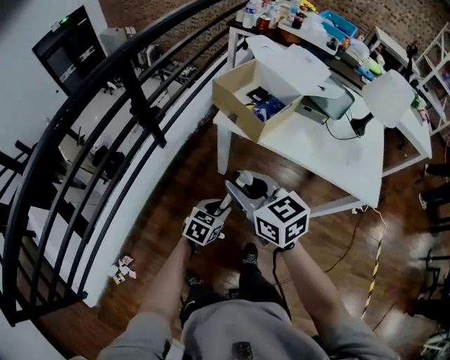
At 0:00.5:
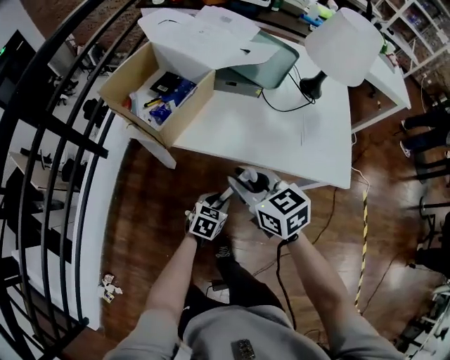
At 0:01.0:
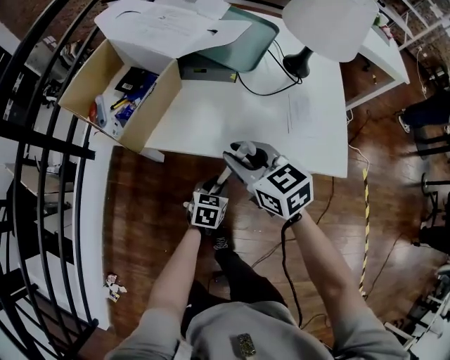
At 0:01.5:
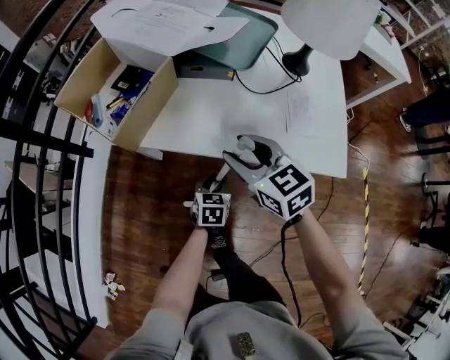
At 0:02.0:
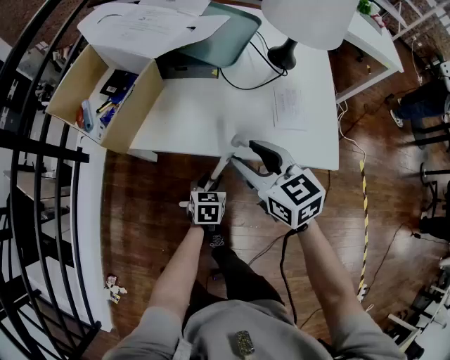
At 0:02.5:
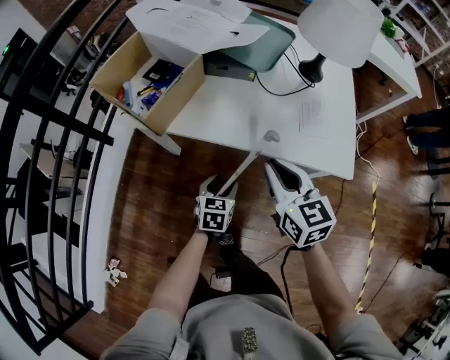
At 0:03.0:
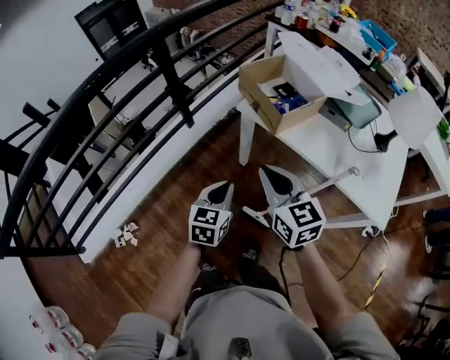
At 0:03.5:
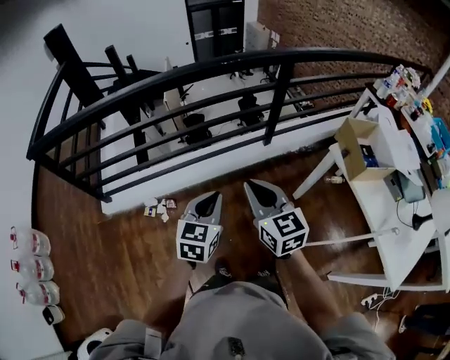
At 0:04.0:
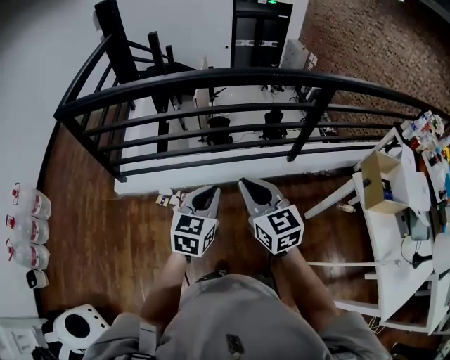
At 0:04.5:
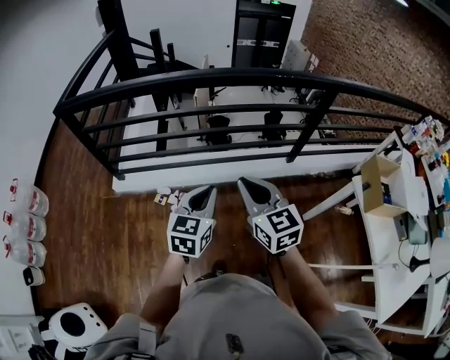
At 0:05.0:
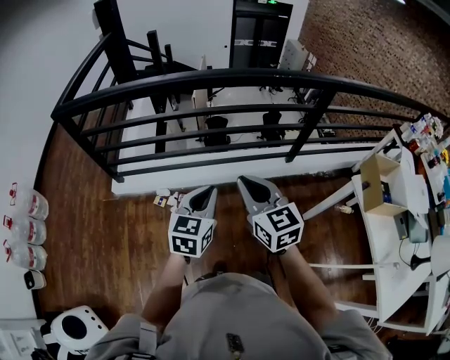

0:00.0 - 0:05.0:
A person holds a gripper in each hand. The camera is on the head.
0:00.0 - 0:02.5: Both grippers travel together to the right, roughly 30 cm. The left gripper opens up. The right gripper changes its angle by roughly 30 degrees, and opens, then closes again.
0:02.5 - 0:05.0: The pair of grippers is taken some 70 cm. The left gripper swivels about 70 degrees, and closes its fingers; the right gripper turns by approximately 70 degrees.

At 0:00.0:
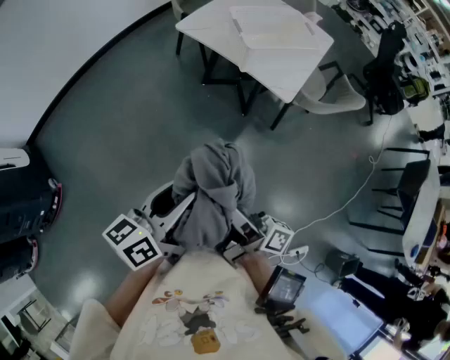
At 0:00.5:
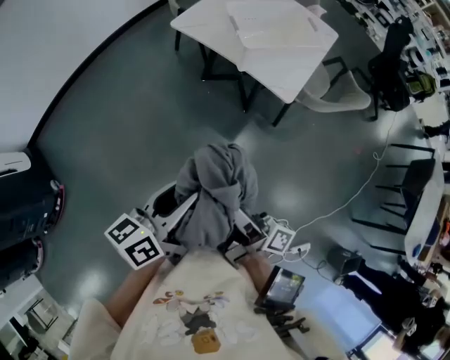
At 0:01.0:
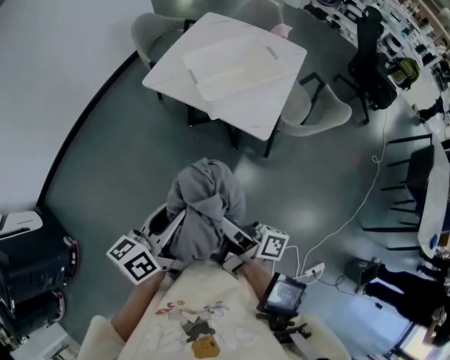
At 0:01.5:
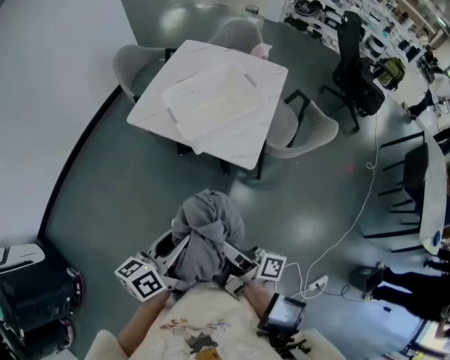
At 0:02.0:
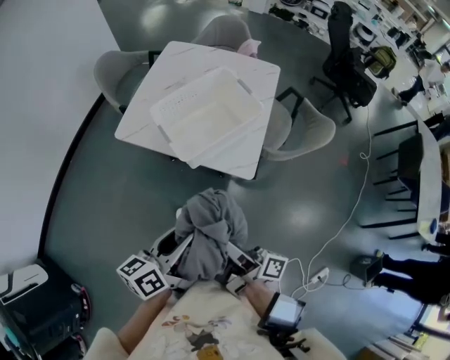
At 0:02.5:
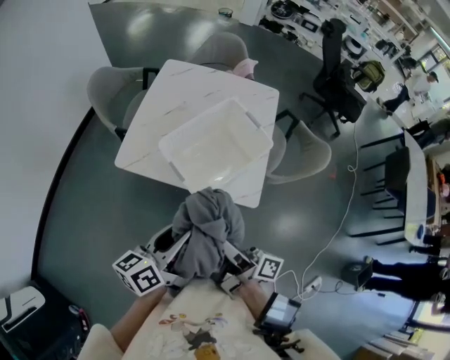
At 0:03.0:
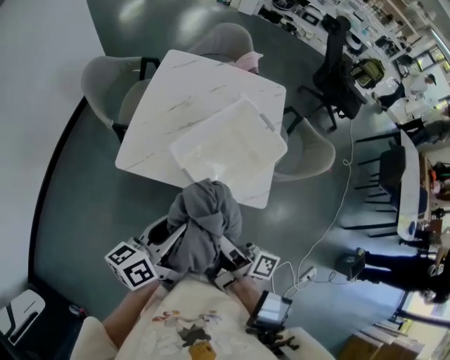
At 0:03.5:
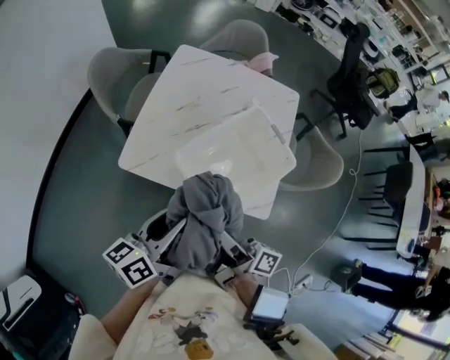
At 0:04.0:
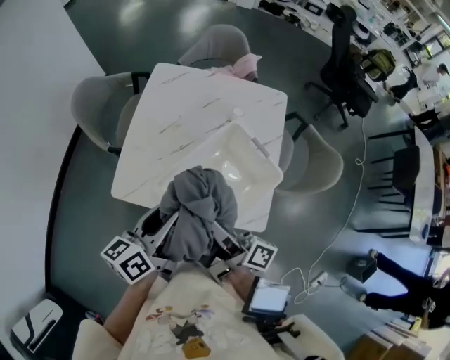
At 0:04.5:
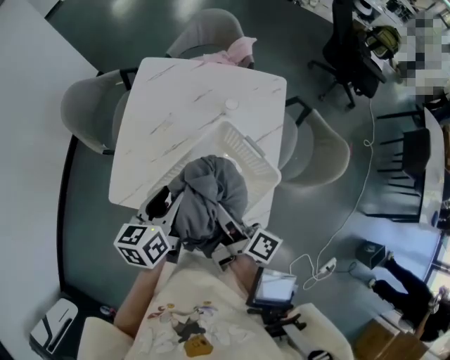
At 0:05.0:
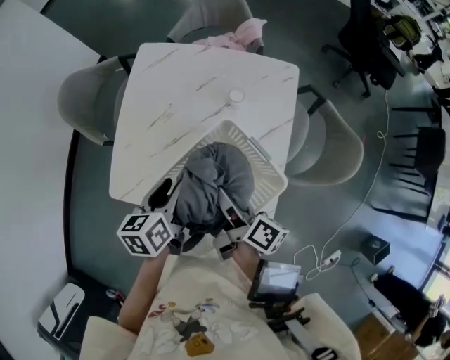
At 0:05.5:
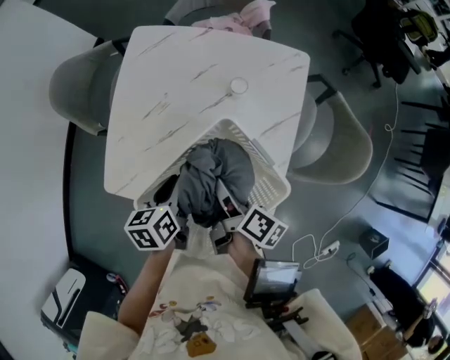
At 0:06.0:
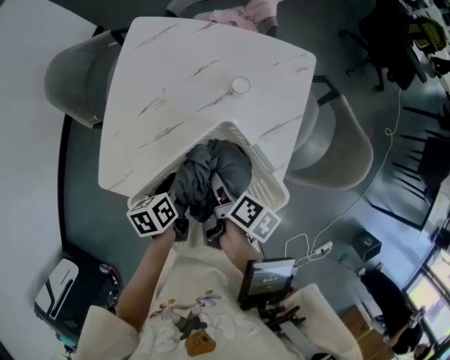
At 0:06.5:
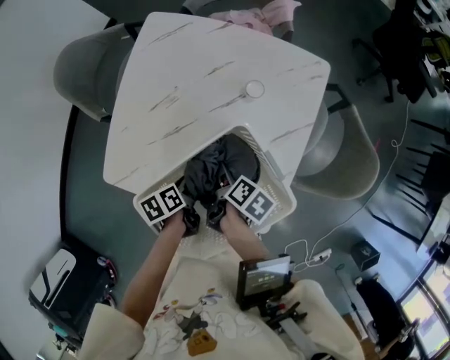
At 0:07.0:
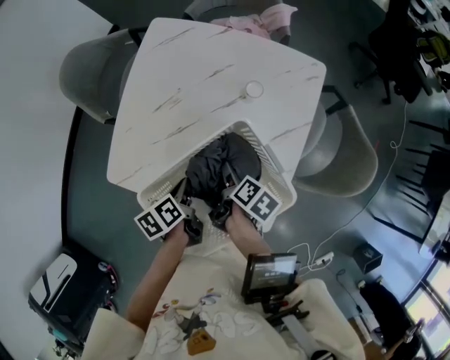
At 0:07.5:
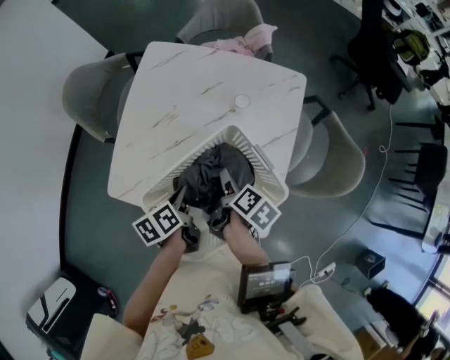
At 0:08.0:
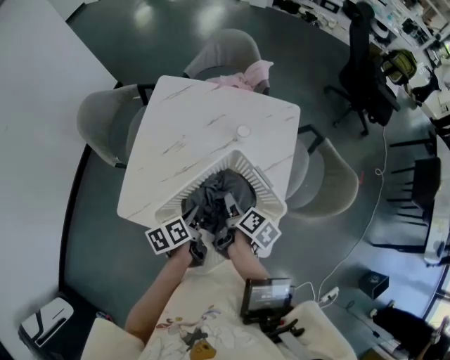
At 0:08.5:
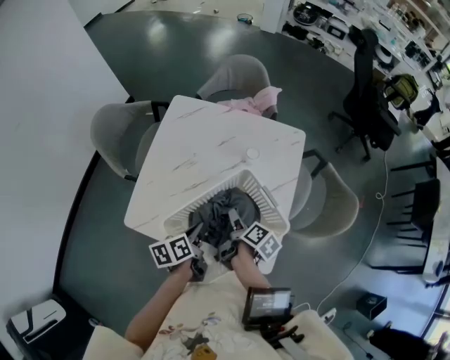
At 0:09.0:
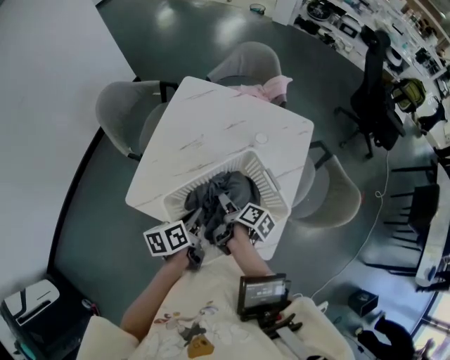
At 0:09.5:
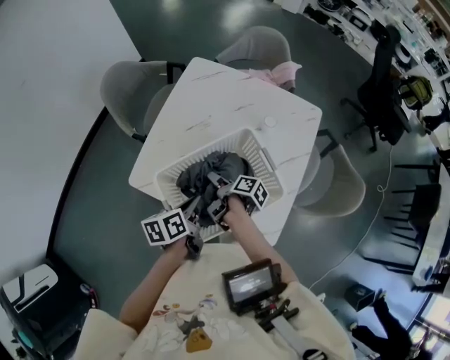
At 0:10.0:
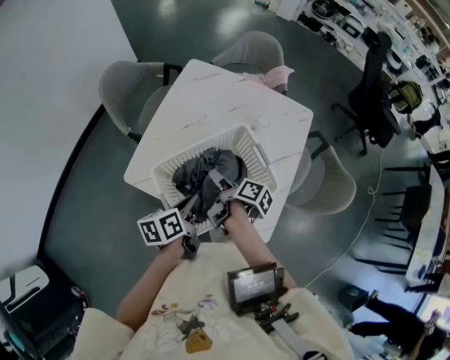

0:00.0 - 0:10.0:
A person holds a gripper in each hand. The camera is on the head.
0:00.0 - 0:02.0: The left gripper ends up roughly 30 cm from where it was.
0:02.0 - 0:04.0: The left gripper shifts by approximately 35 cm.
0:04.0 - 0:06.0: The left gripper shifts approximately 25 cm downward, angles its fingers downward, by about 40 degrees, and closes up.
0:06.0 - 0:08.0: The left gripper goes some 5 cm upward.
0:08.0 - 0:10.0: The left gripper shifts by approximately 10 cm.

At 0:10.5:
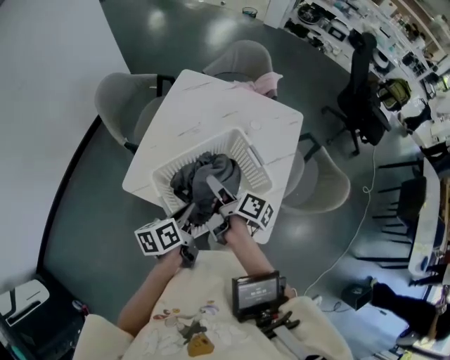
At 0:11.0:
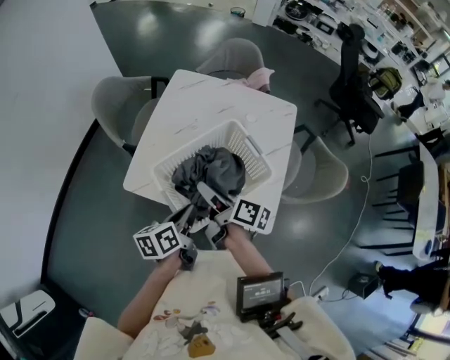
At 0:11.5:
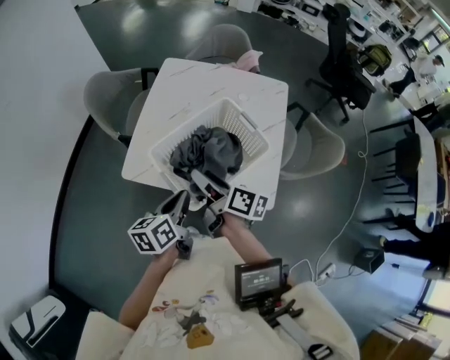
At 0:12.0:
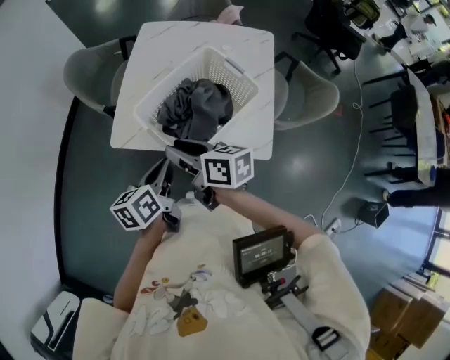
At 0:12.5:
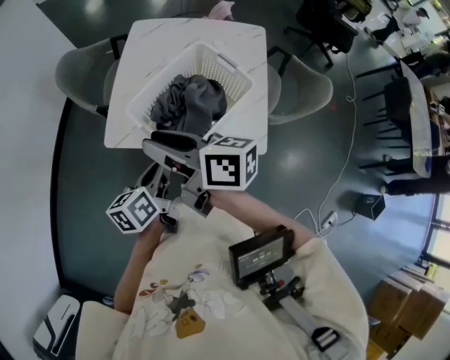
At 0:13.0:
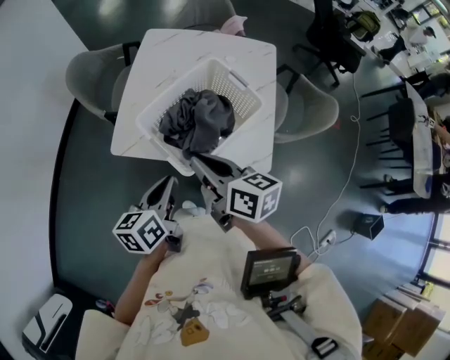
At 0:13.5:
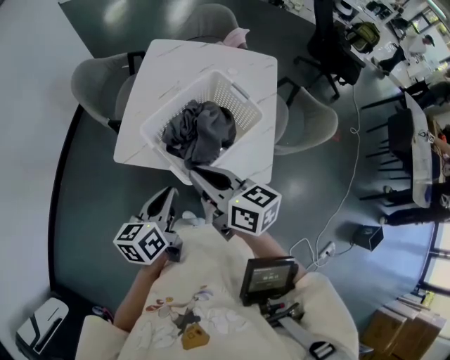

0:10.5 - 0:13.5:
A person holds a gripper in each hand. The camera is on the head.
0:10.5 - 0:12.0: The left gripper changes place by roughly 10 cm.

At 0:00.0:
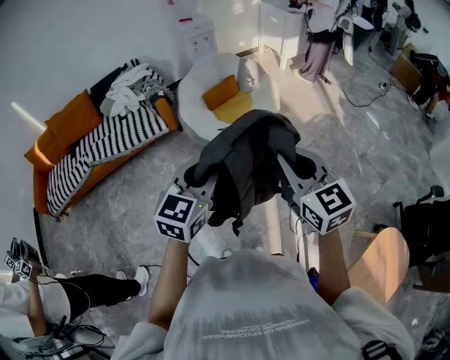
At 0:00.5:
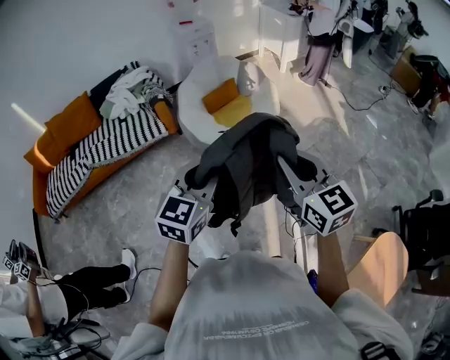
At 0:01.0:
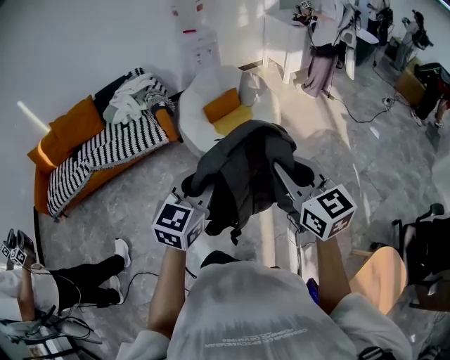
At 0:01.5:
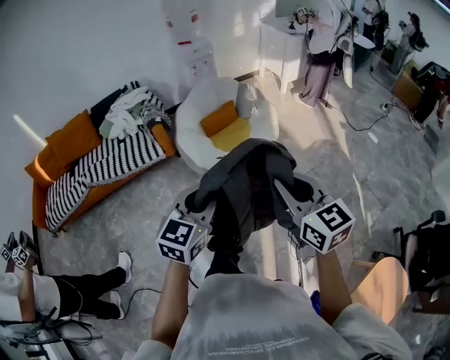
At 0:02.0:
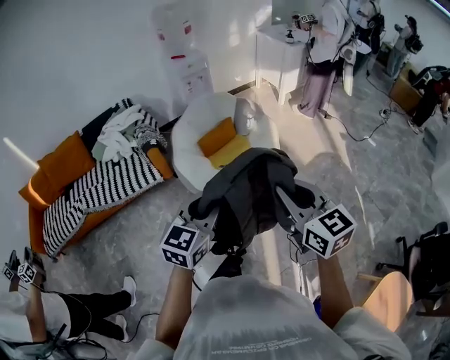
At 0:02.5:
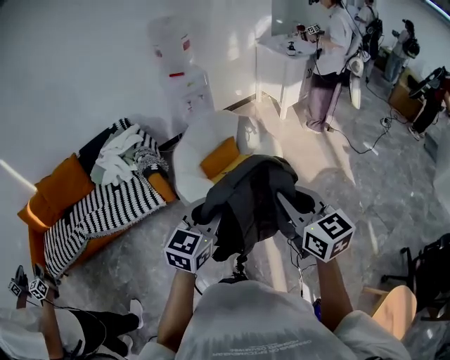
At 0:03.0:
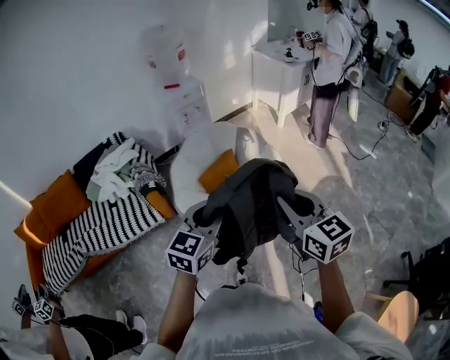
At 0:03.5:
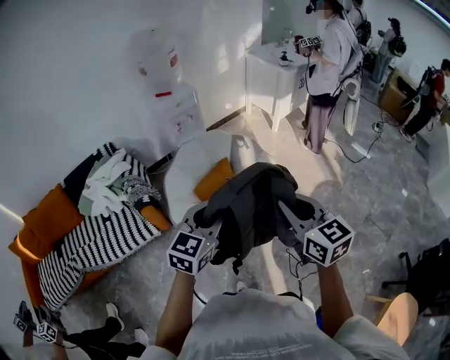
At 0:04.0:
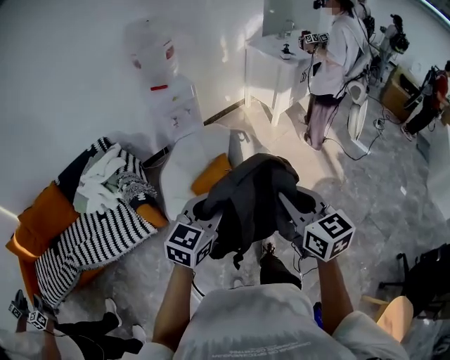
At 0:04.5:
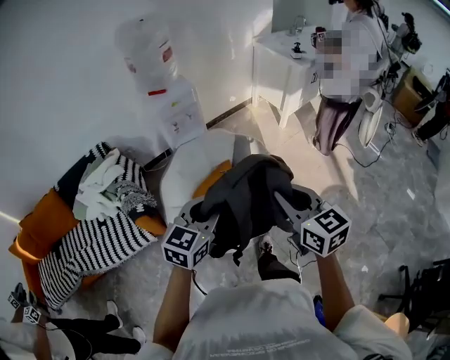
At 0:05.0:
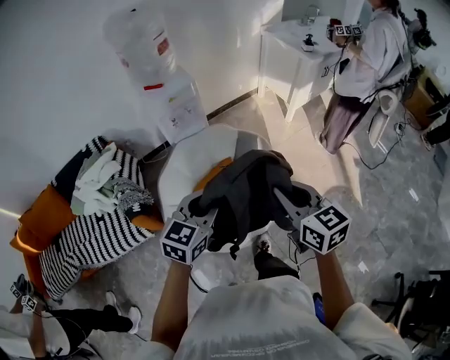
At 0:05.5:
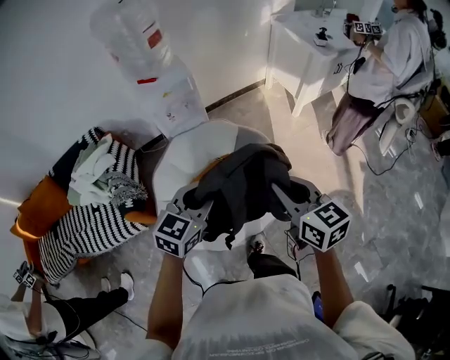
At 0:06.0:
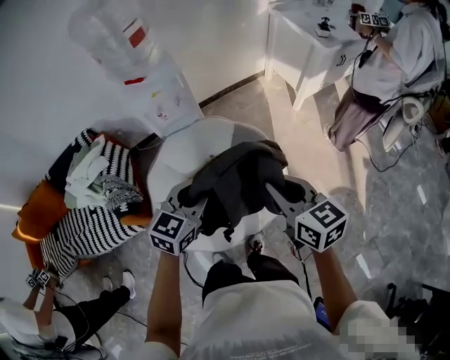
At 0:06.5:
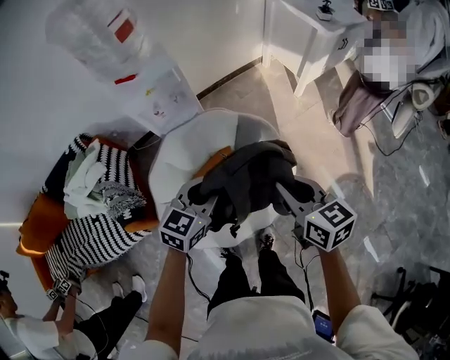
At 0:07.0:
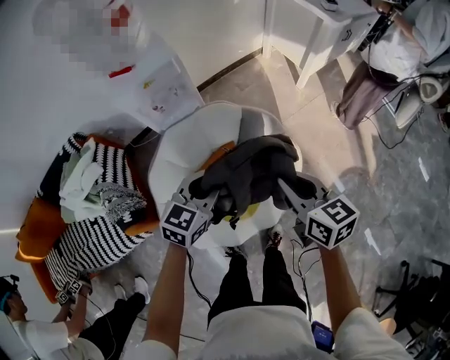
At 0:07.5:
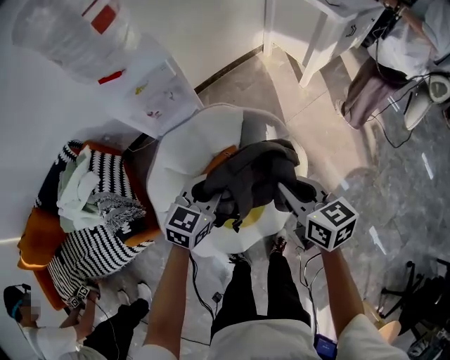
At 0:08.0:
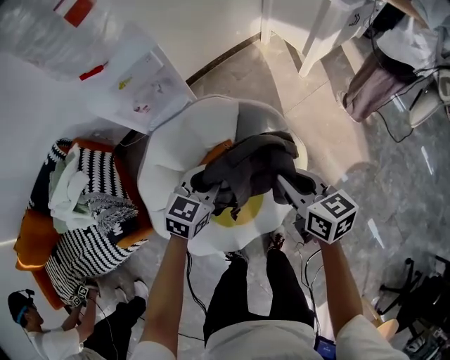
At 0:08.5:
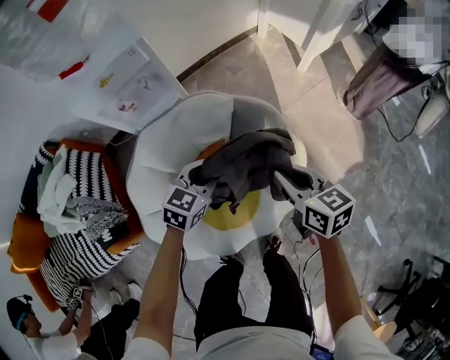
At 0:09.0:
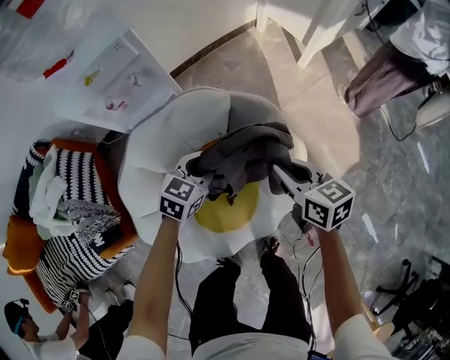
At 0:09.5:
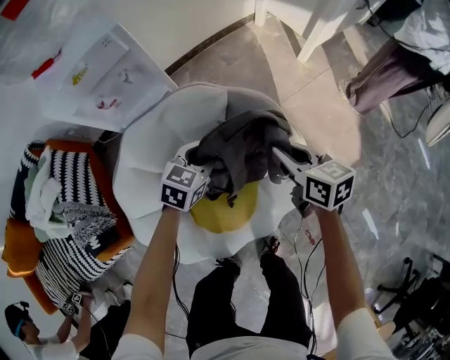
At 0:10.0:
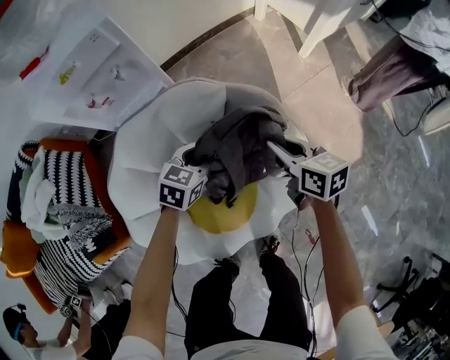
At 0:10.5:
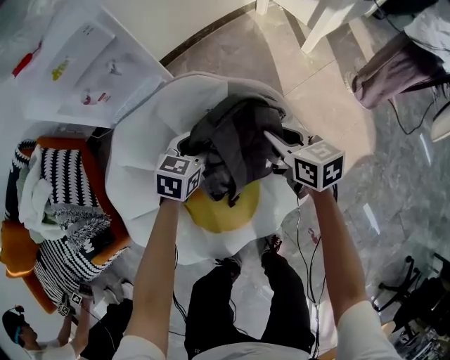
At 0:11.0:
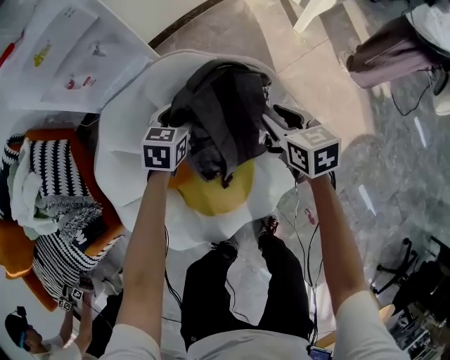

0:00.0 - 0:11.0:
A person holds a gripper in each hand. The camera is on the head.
0:00.0 - 0:02.0: The two grippers go some 20 cm forward.
0:02.0 - 0:03.5: The two grippers go roughly 25 cm forward.
0:03.5 - 0:05.5: The two grippers go roughly 35 cm forward.
0:05.5 - 0:07.5: The grippers both shift downward and forward by about 25 cm.
0:07.5 - 0:09.0: Both grippers travel together downward and forward, roughly 20 cm.
0:09.0 - 0:11.0: Both grippers travel together downward and forward, approximately 15 cm. The left gripper opens up.
